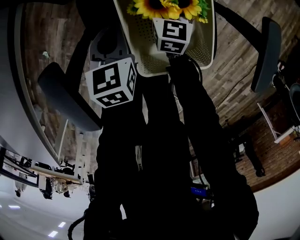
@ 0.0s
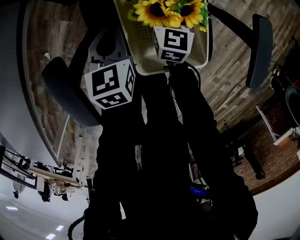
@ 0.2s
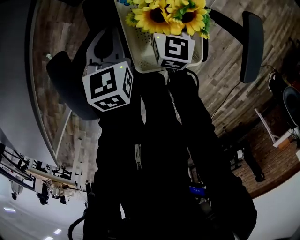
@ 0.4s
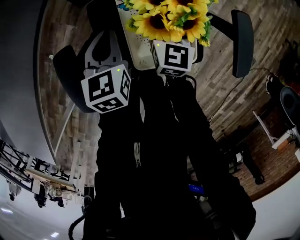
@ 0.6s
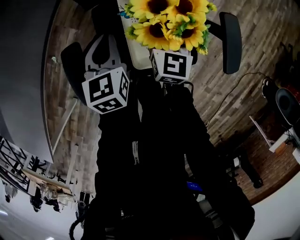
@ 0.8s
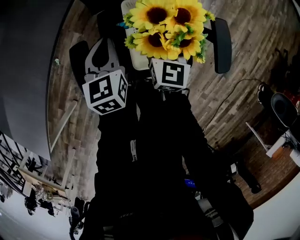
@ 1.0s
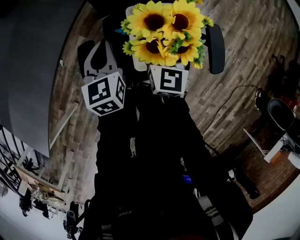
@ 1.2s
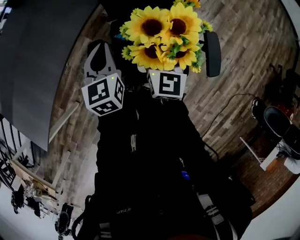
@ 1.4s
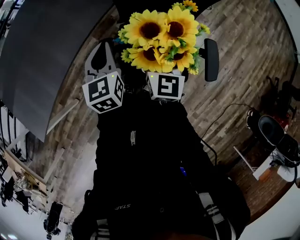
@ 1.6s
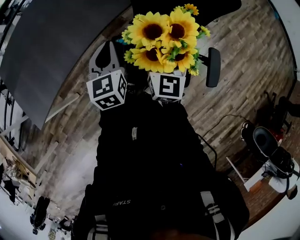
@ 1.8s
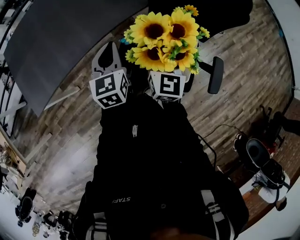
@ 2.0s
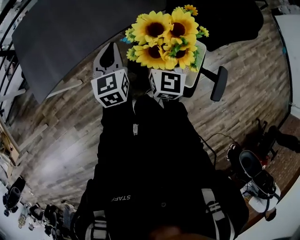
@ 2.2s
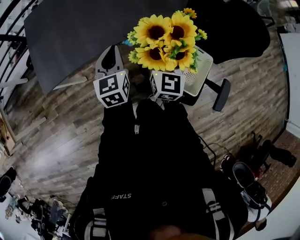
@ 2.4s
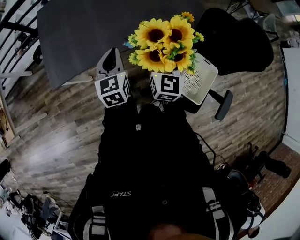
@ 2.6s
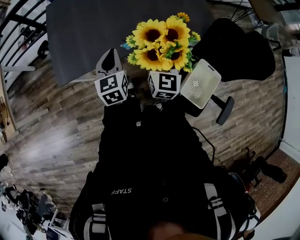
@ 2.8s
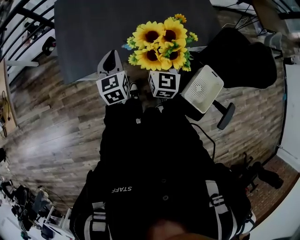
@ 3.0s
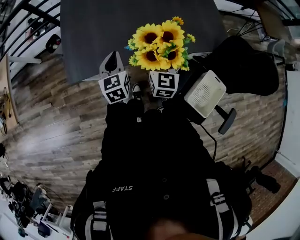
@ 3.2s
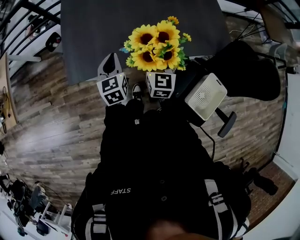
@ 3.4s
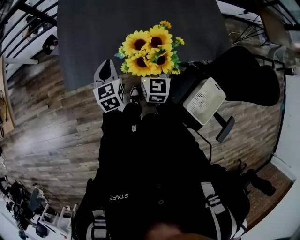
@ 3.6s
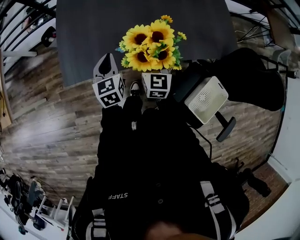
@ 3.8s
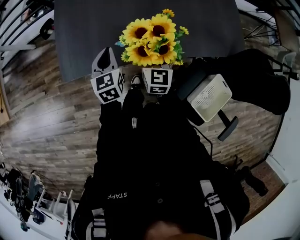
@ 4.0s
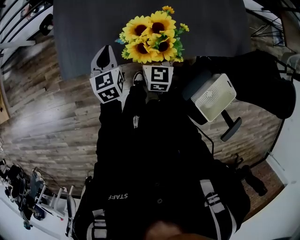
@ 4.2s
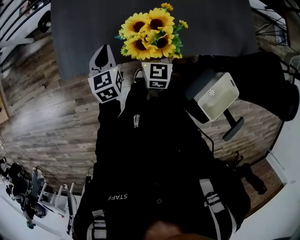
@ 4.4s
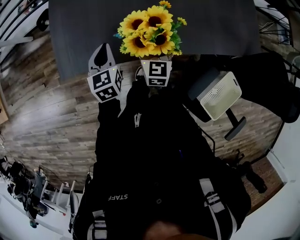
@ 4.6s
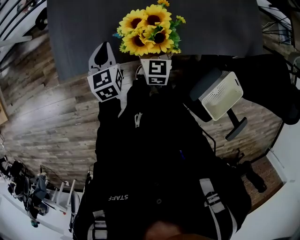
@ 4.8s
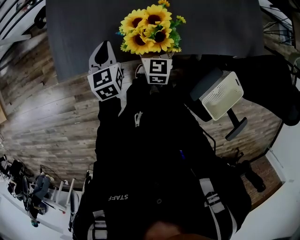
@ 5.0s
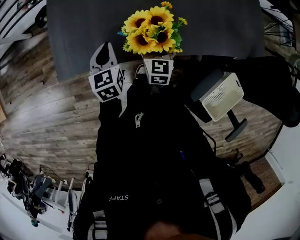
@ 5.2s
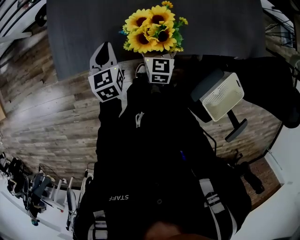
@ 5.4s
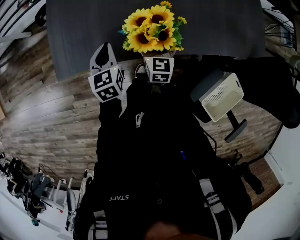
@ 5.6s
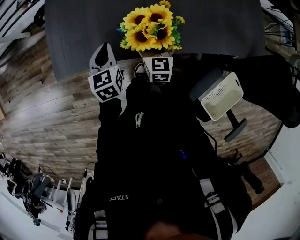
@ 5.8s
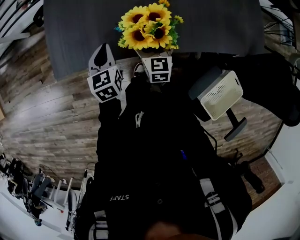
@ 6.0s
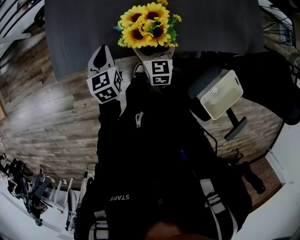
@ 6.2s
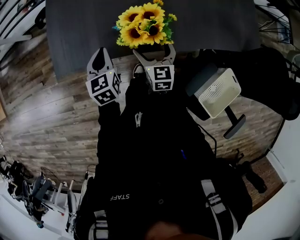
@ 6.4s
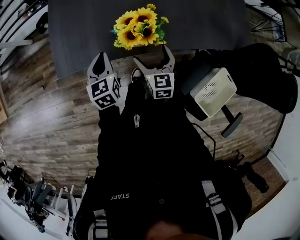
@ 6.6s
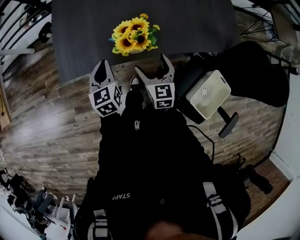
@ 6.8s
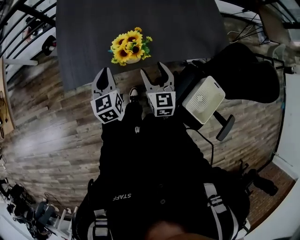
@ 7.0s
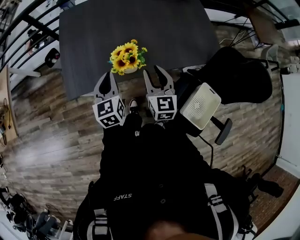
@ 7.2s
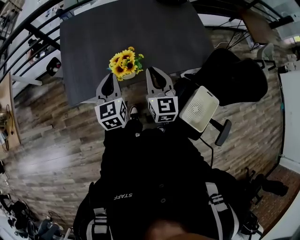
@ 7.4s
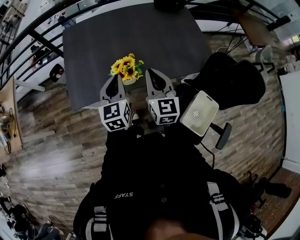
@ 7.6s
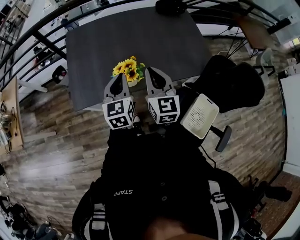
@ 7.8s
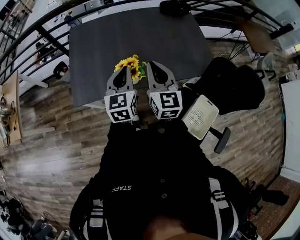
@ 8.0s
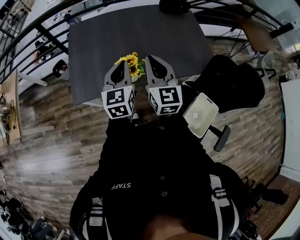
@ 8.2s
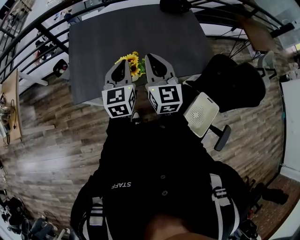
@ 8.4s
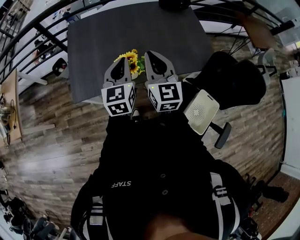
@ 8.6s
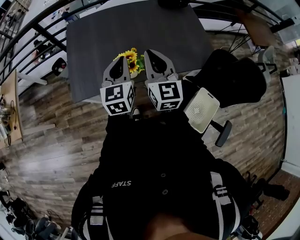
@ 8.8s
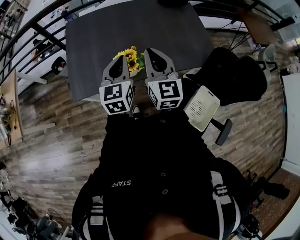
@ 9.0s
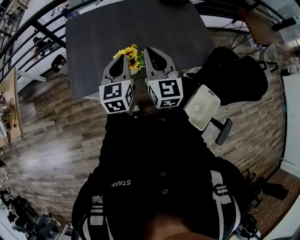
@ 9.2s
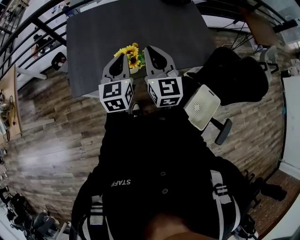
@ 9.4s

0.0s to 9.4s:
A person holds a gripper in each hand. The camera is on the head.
0.0s to 1.6s: The two grippers go approximately 40 cm upward. The right gripper turns by roughly 30 degrees. The left gripper turns by some 30 degrees.
1.6s to 3.2s: The two grippers travel together, about 40 cm. The left gripper turns by roughly 40 degrees. Meanwhile the right gripper swivels some 40 degrees.
3.2s to 4.8s: The right gripper moves downward, forward and to the left, approximately 30 cm. The left gripper travels downward, to the left and forward by approximately 25 cm.
4.8s to 6.2s: The grippers stay close to where they were, moving slightly.
6.2s to 7.8s: The left gripper is displaced upward and to the right by roughly 35 cm, and swivels about 30 degrees. Meanwhile the right gripper goes roughly 40 cm upward, turns by approximately 20 degrees, and closes up.
7.8s to 9.4s: There are only small adjustments of the grippers.

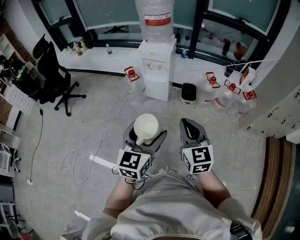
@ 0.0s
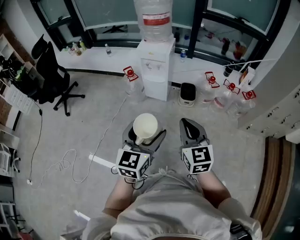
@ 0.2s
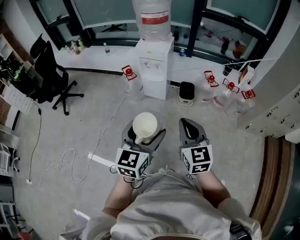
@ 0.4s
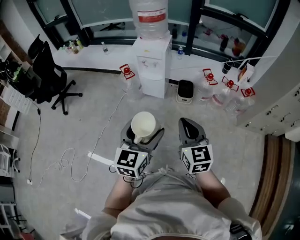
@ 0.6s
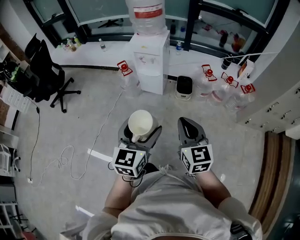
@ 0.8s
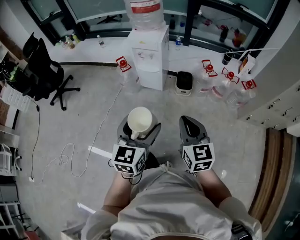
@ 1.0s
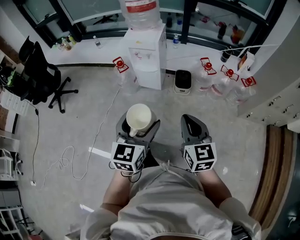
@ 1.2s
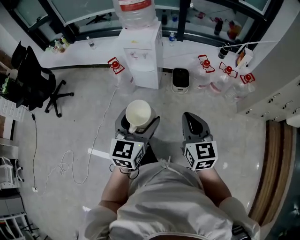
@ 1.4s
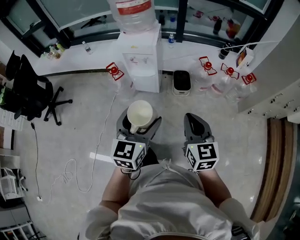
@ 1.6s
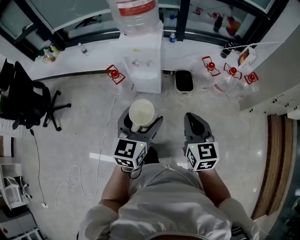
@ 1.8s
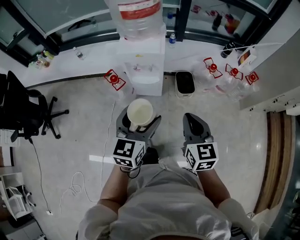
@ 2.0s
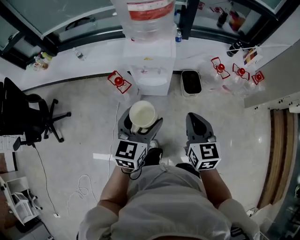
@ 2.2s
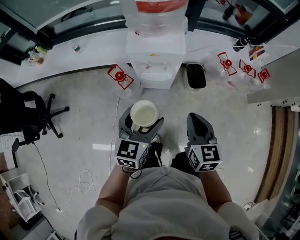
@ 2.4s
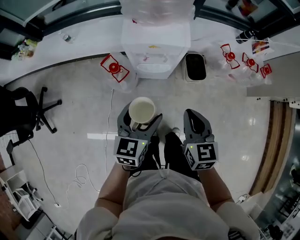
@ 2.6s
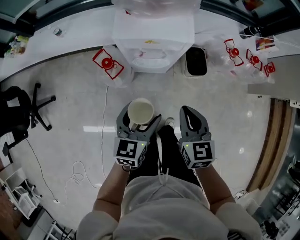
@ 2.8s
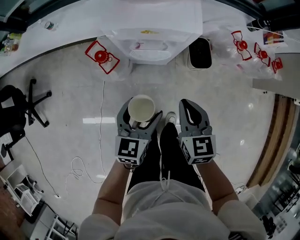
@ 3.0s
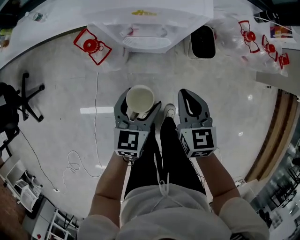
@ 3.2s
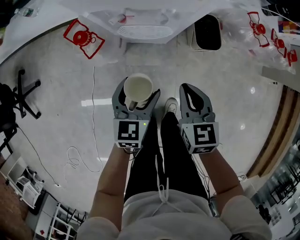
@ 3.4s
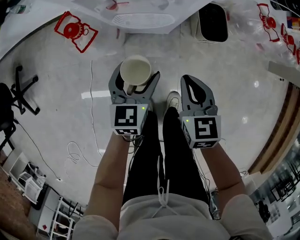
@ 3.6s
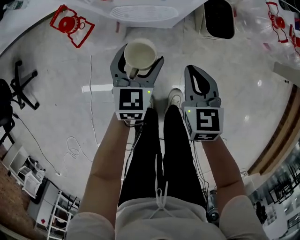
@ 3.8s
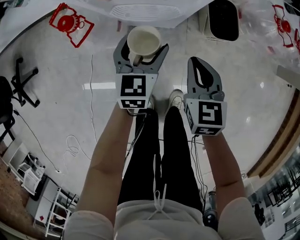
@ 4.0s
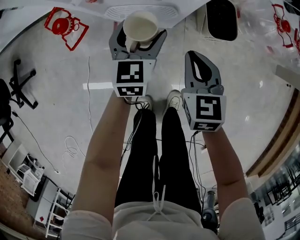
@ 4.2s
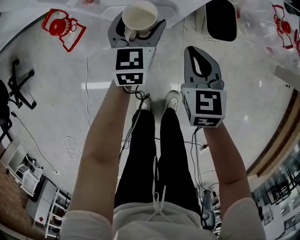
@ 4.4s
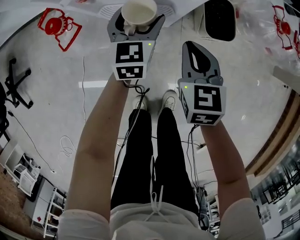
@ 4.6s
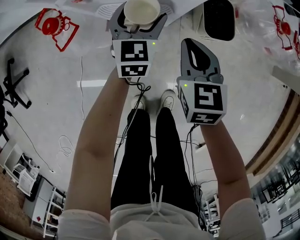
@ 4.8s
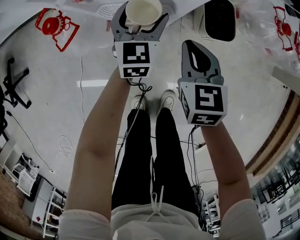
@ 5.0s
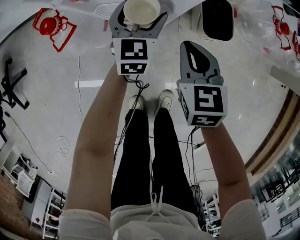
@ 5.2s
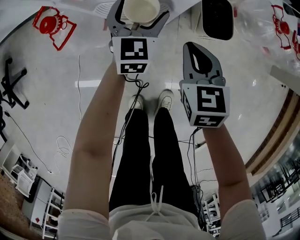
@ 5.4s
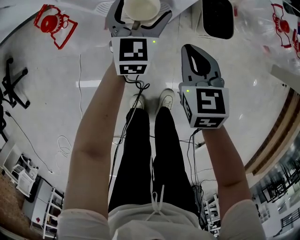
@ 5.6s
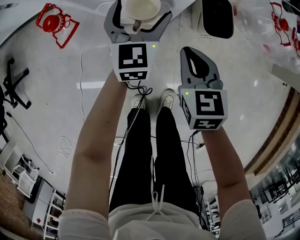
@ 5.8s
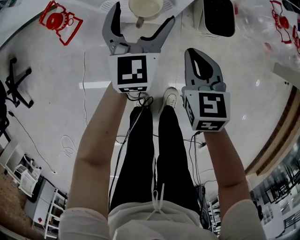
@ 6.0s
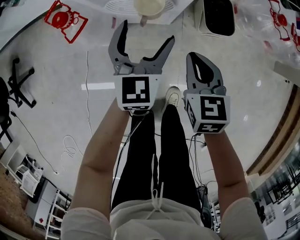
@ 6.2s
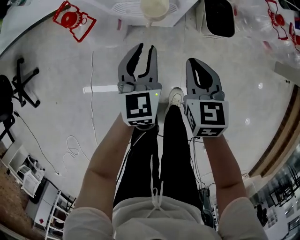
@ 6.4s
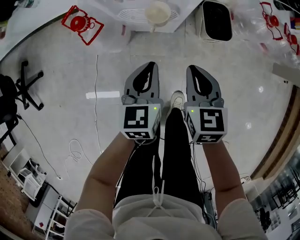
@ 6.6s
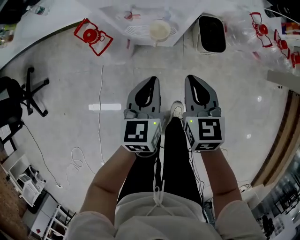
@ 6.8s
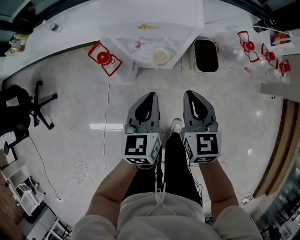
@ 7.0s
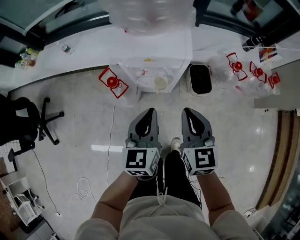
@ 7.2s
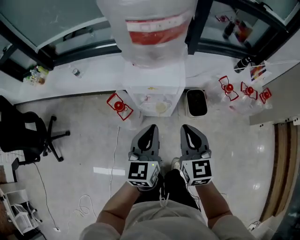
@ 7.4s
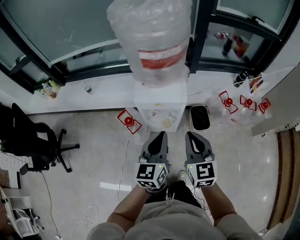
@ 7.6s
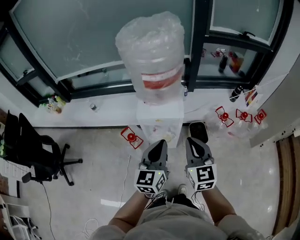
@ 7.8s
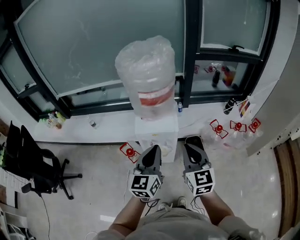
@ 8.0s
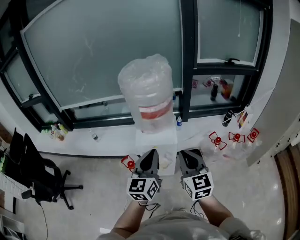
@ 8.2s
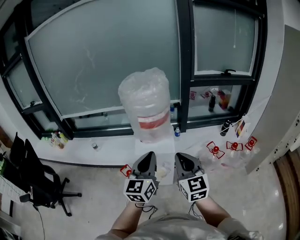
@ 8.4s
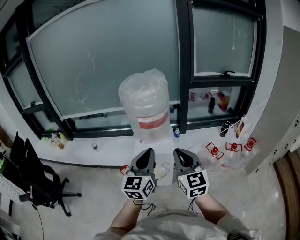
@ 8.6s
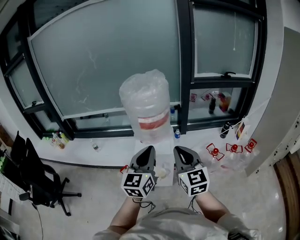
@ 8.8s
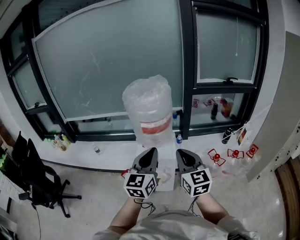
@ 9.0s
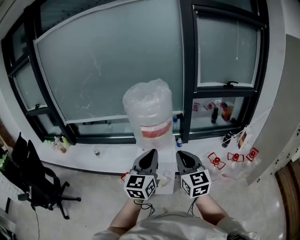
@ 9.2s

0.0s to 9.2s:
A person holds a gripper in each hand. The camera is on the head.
0.0s to 1.6s: The left gripper is displaced forward by approximately 15 cm. The right gripper shifts about 15 cm forward and downward.
1.6s to 3.0s: The left gripper shifts approximately 40 cm downward, forward and to the left, and rotates approximately 20 degrees; the right gripper shifts some 40 cm forward, to the left and downward.
3.0s to 4.6s: Both grippers travel together downward and forward, approximately 30 cm.
4.6s to 6.2s: The right gripper shifts roughly 5 cm backward. The left gripper shifts about 10 cm backward and upward.
6.2s to 7.6s: Both grippers travel together upward, some 40 cm. The left gripper swivels roughly 20 degrees, and closes; the right gripper rotates about 30 degrees.
7.6s to 9.2s: The grippers both shift upward by approximately 20 cm. The left gripper swivels roughly 20 degrees.

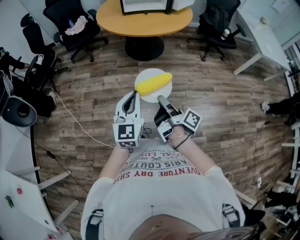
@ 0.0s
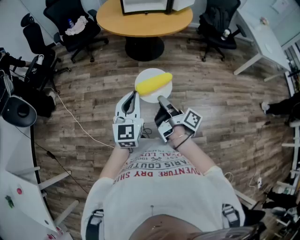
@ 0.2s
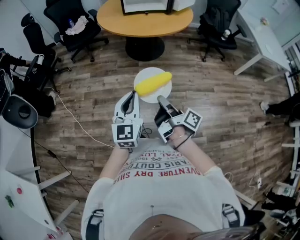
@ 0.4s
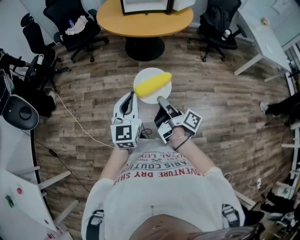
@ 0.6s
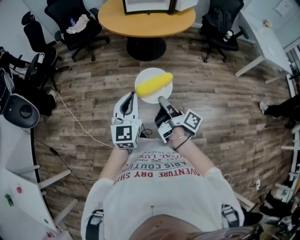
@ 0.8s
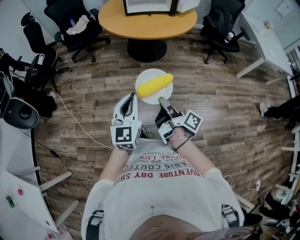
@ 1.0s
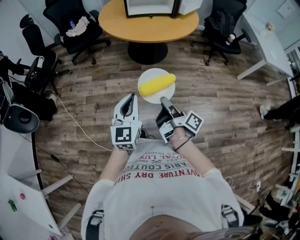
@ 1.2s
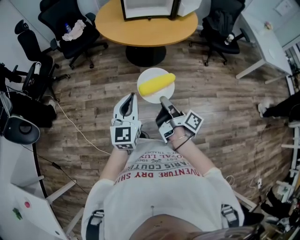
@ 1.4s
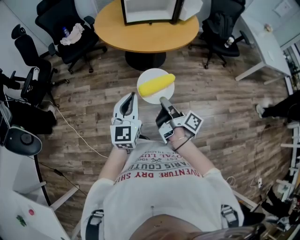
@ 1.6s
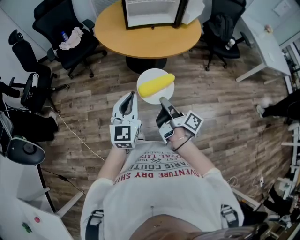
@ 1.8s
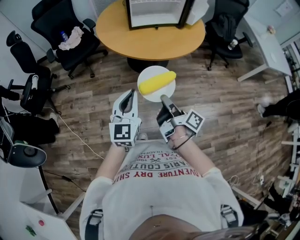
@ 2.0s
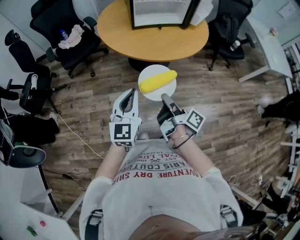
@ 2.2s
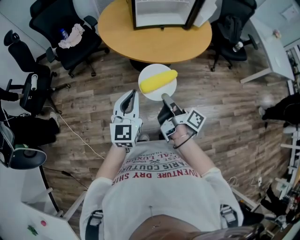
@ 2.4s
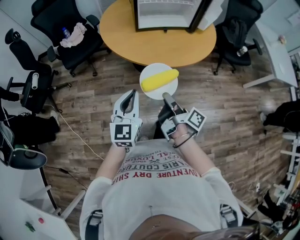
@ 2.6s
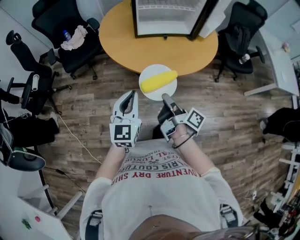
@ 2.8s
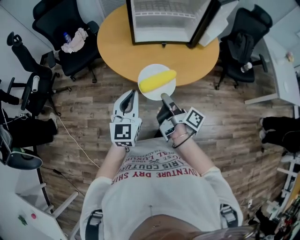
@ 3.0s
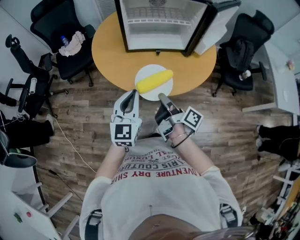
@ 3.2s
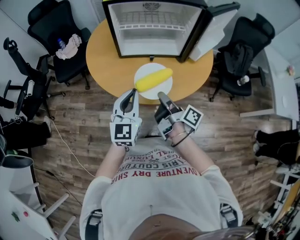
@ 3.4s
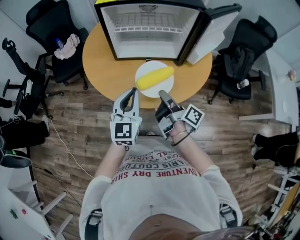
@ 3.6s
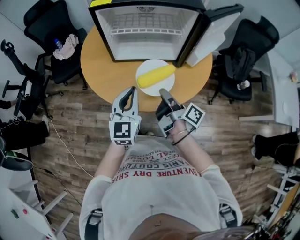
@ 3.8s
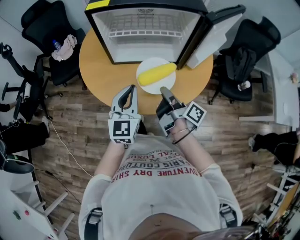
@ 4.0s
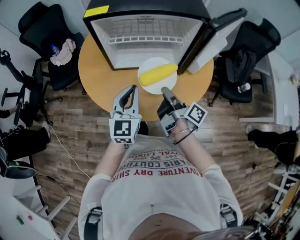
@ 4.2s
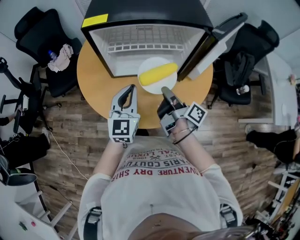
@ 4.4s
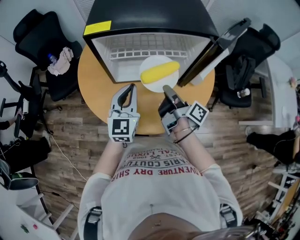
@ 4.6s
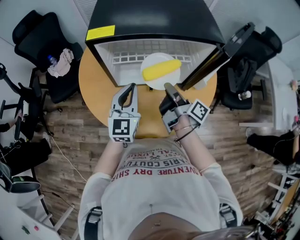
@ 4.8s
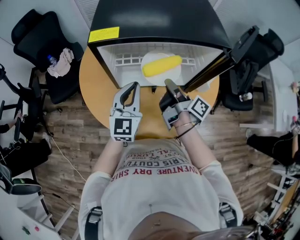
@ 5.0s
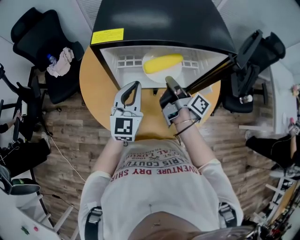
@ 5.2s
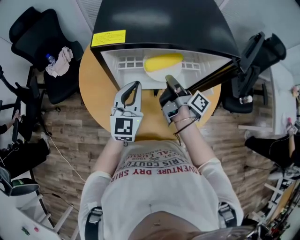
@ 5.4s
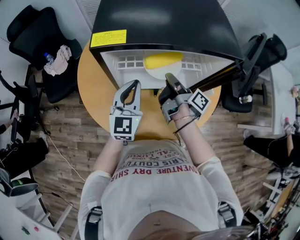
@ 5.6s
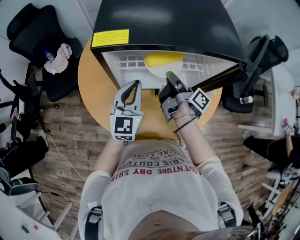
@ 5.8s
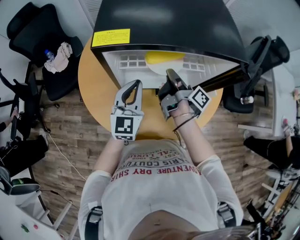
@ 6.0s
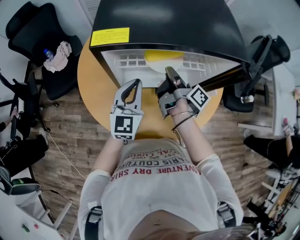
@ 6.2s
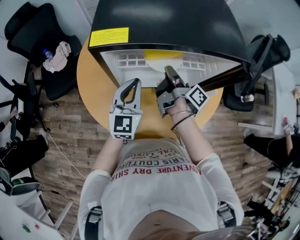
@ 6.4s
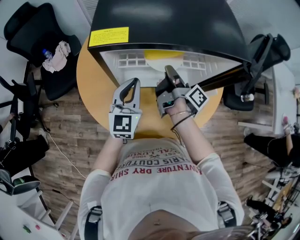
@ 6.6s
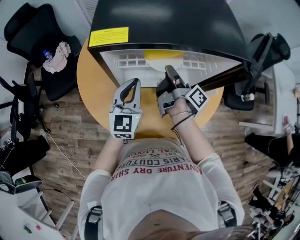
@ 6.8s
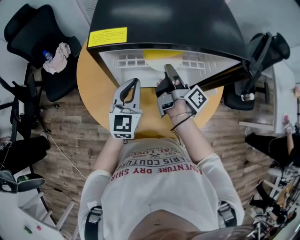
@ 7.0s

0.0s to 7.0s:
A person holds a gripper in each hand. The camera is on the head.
0.0s to 1.4s: The left gripper ends up approximately 15 cm from where it was.
1.4s to 2.8s: The left gripper changes place by roughly 30 cm.
2.8s to 4.2s: The left gripper changes place by roughly 35 cm.
4.2s to 5.6s: The left gripper changes place by approximately 20 cm.
